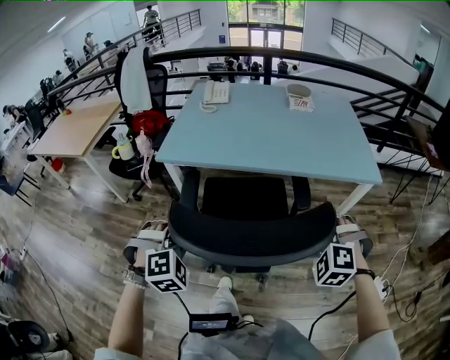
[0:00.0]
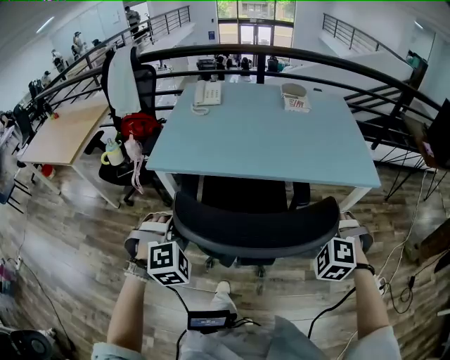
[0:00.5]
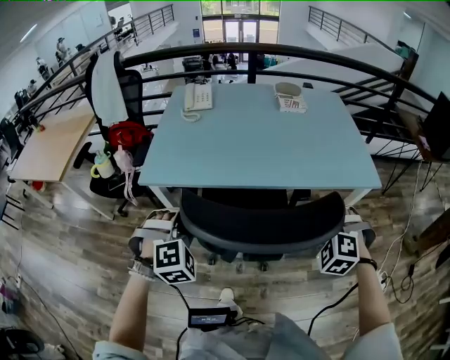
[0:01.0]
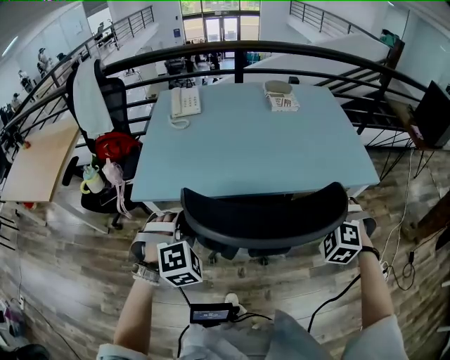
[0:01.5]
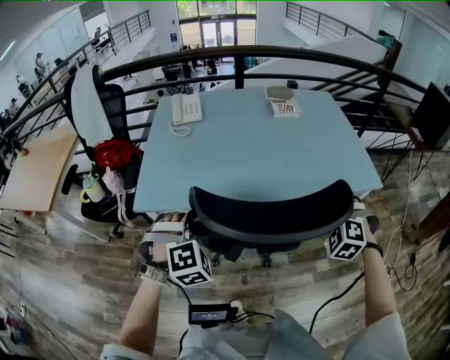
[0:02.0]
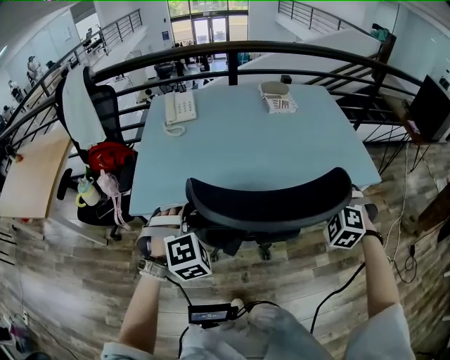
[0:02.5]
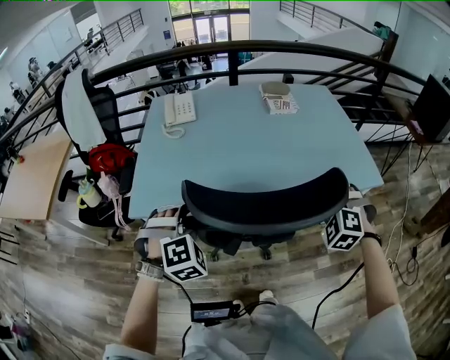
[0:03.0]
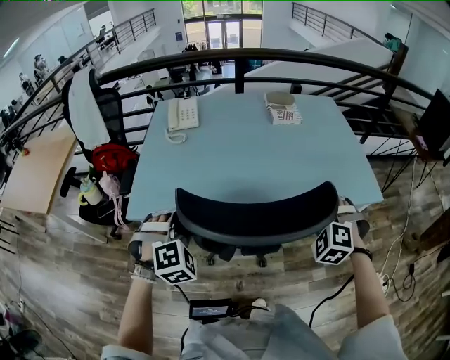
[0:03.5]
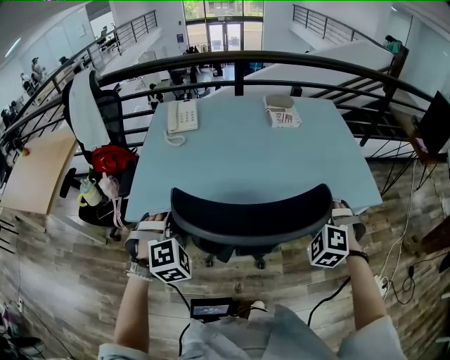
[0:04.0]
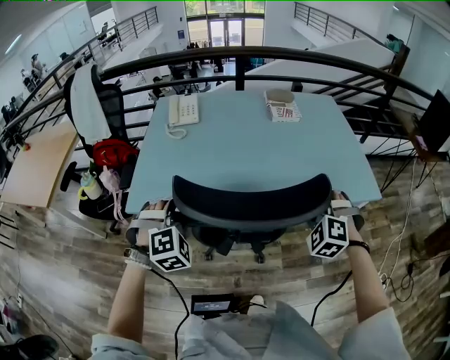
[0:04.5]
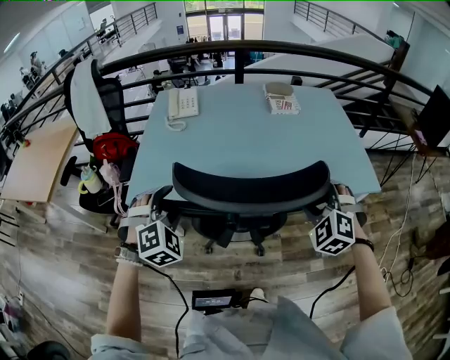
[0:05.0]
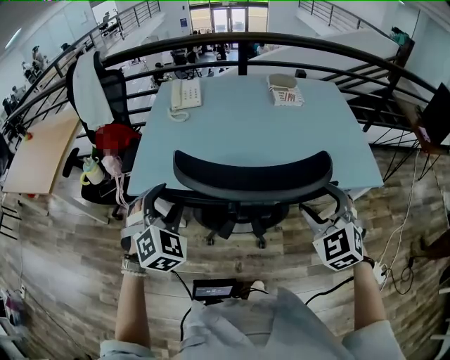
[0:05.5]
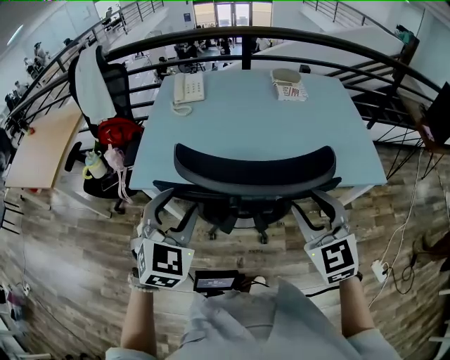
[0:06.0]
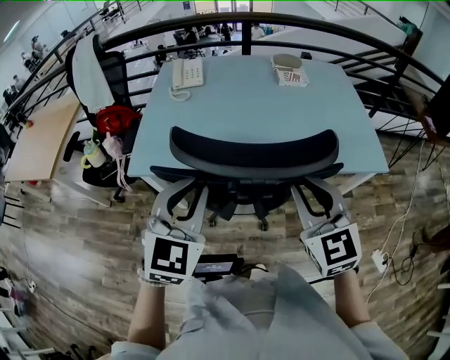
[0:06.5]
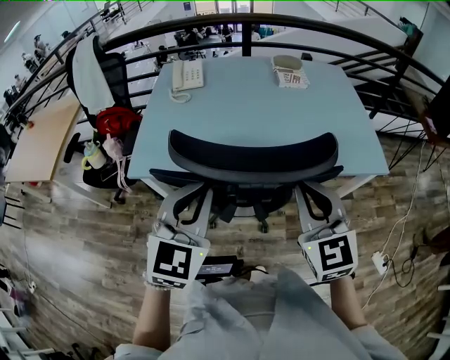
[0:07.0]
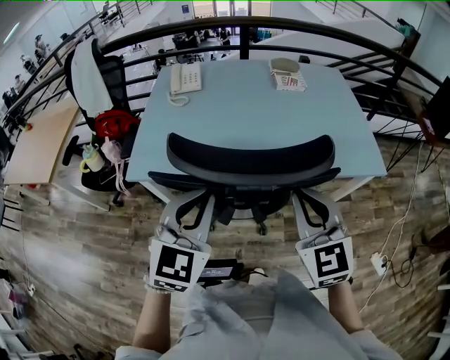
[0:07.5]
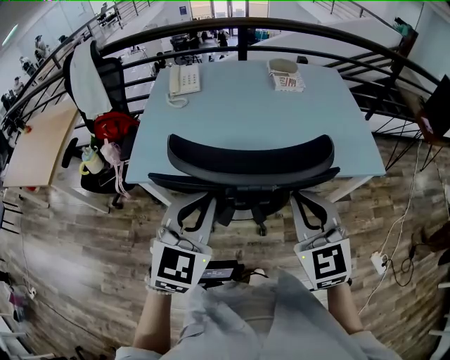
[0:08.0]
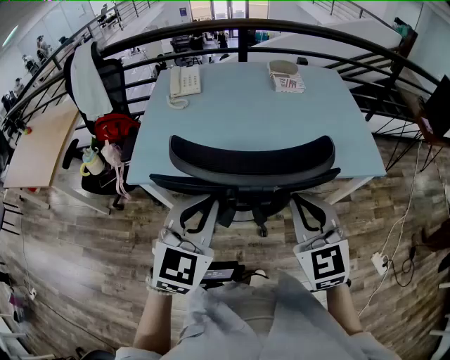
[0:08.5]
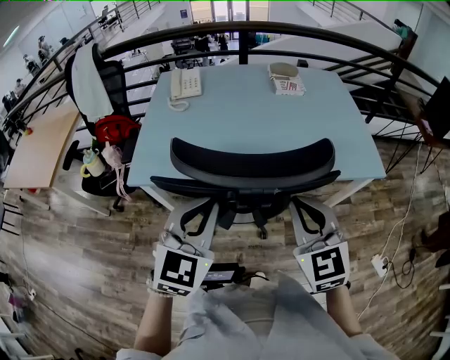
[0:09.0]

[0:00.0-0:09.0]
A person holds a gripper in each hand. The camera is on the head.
0:00.0 to 0:02.0: The grippers both shift forward by about 25 cm.
0:02.0 to 0:04.5: The grippers both shift forward by some 5 cm.
0:04.5 to 0:07.0: The left gripper travels upward, backward and to the right by roughly 15 cm, twists roughly 50 degrees counterclockwise, seen from behind, and closes up. Meanwhile the right gripper goes roughly 15 cm upward, backward and to the left, rotates around the line of its fingers by some 50 degrees, clockwise from behind, and closes.
0:07.0 to 0:09.0: The grippers make only small movements.

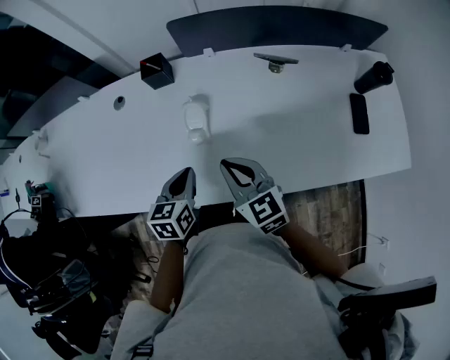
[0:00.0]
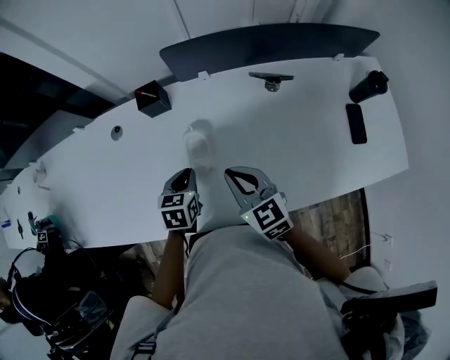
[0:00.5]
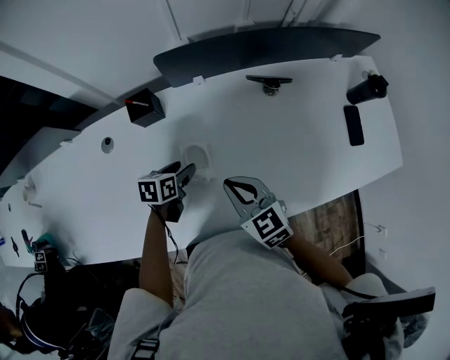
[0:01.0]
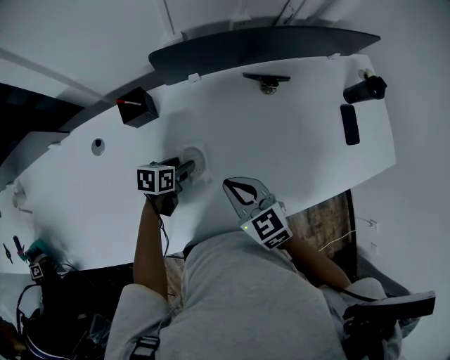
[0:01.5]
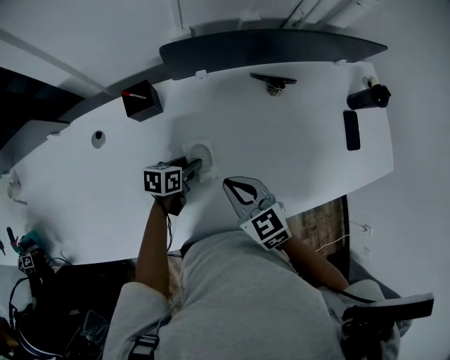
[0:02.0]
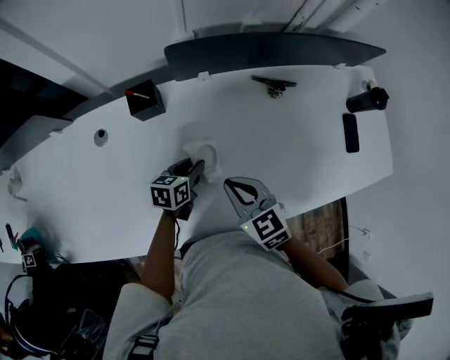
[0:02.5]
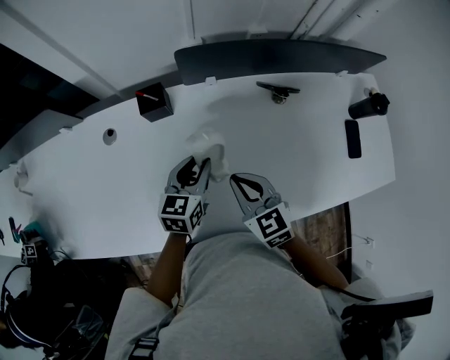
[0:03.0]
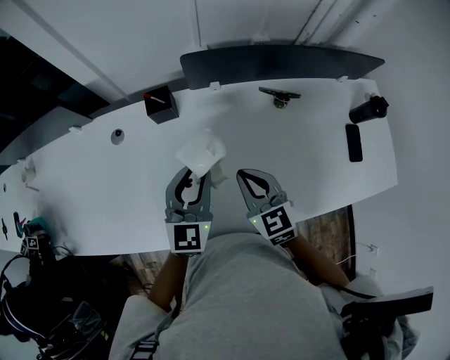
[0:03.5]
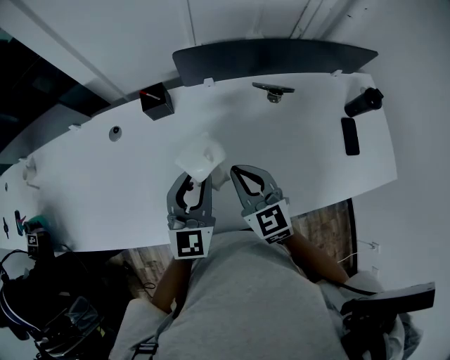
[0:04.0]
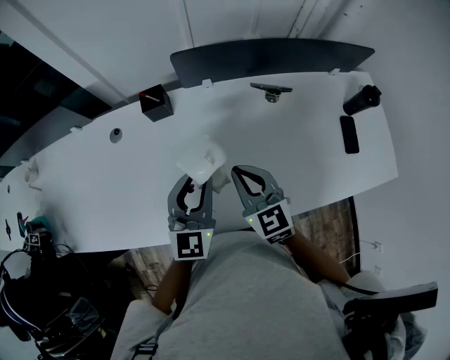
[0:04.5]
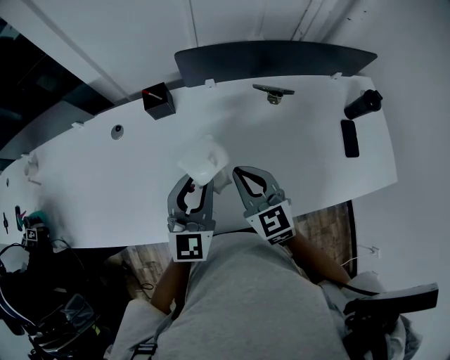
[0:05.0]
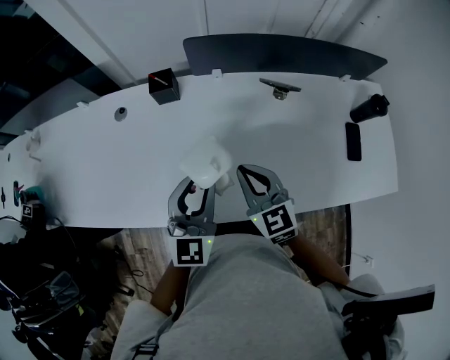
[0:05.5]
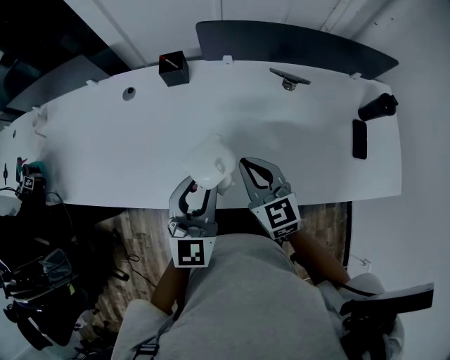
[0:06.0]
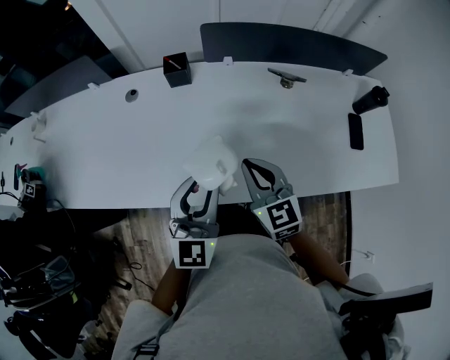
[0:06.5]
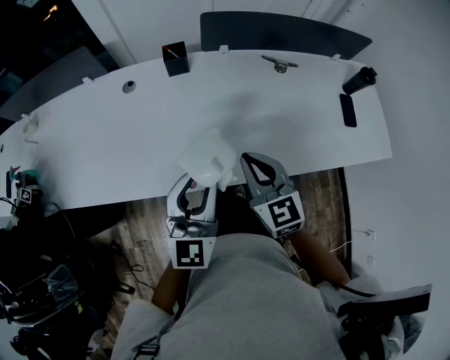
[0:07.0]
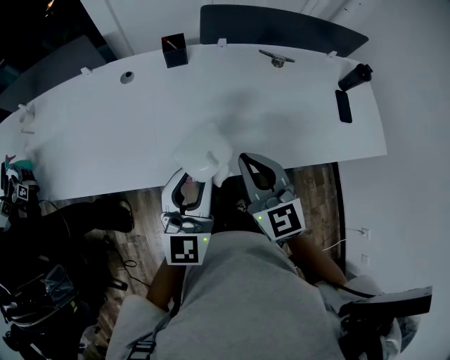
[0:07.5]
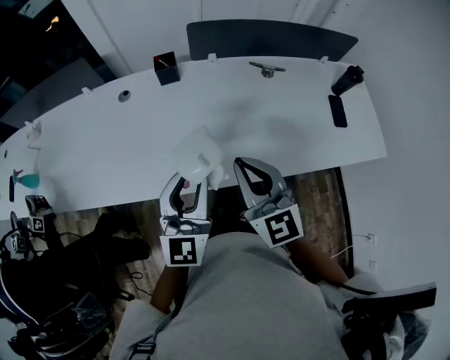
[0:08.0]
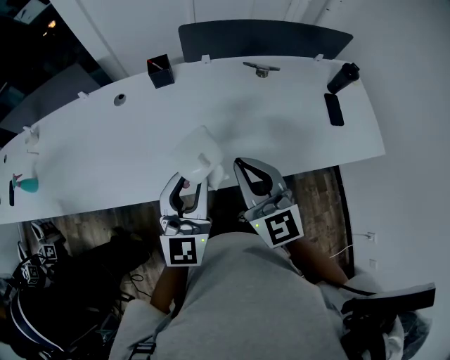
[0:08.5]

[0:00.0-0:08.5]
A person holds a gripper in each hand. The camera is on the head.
0:00.0 to 0:02.0: The right gripper changes place by some 10 cm, while the left gripper moves about 20 cm, swivels approximately 40 degrees, and opens.
0:02.0 to 0:04.0: The left gripper goes some 25 cm upward, and tips its fingers upward by some 40 degrees; the right gripper goes approximately 5 cm upward.
0:04.0 to 0:06.5: Both grippers move backward, approximately 10 cm.
0:06.5 to 0:08.5: The right gripper shifts roughly 15 cm upward and backward. Meanwhile the left gripper is displaced backward by about 5 cm.

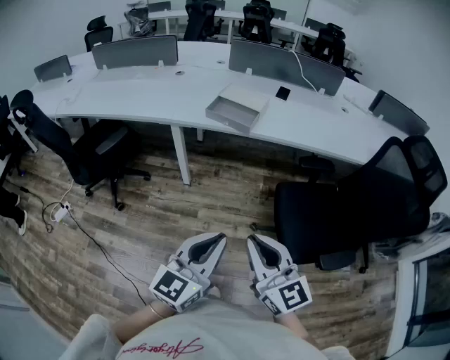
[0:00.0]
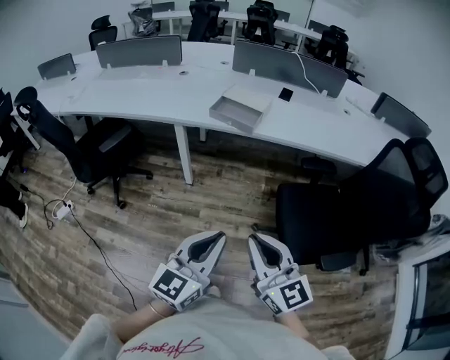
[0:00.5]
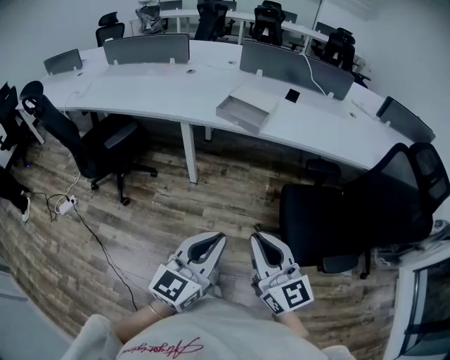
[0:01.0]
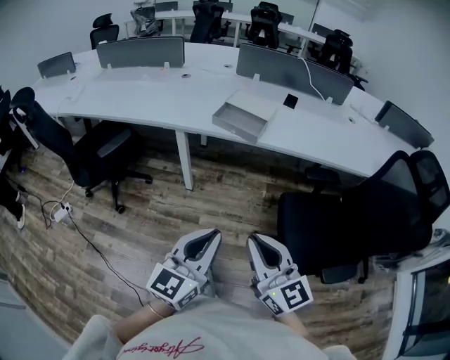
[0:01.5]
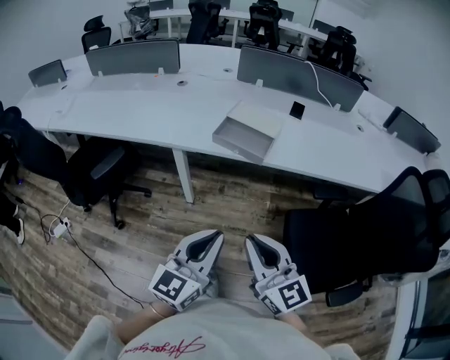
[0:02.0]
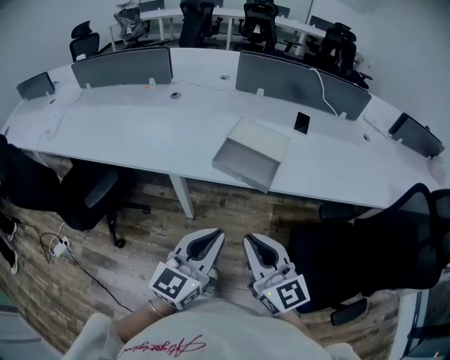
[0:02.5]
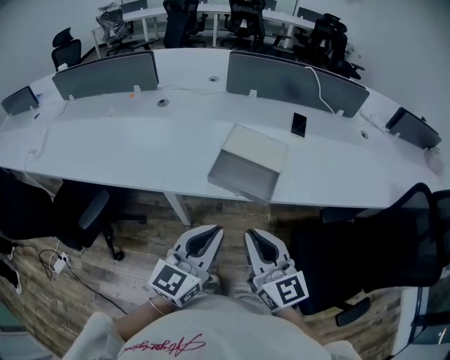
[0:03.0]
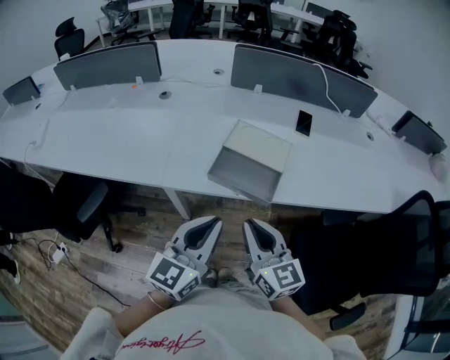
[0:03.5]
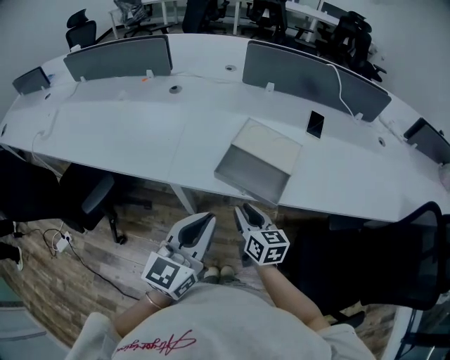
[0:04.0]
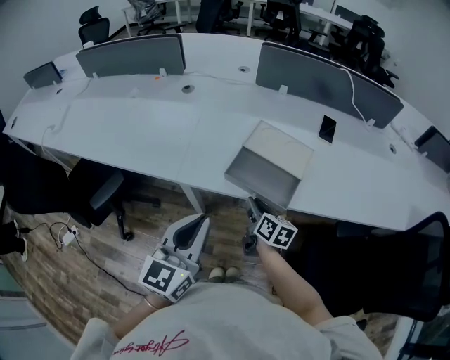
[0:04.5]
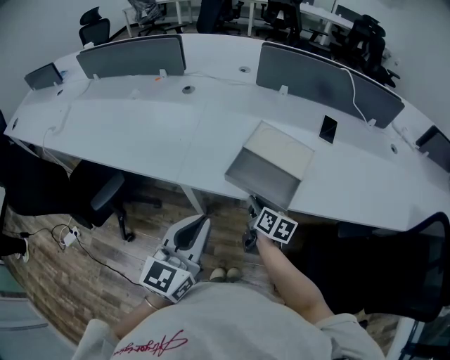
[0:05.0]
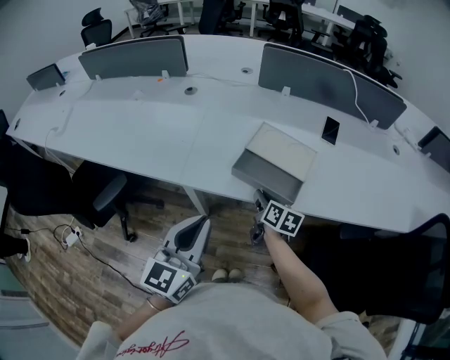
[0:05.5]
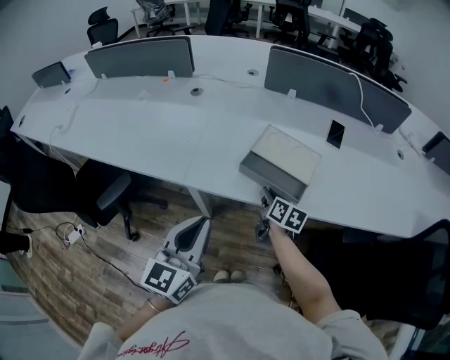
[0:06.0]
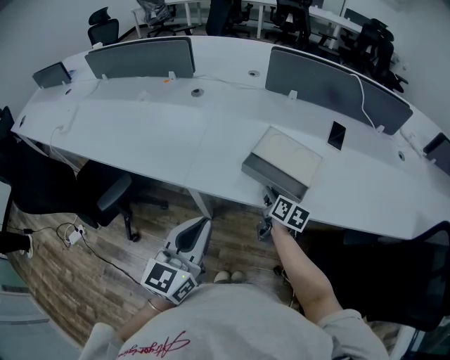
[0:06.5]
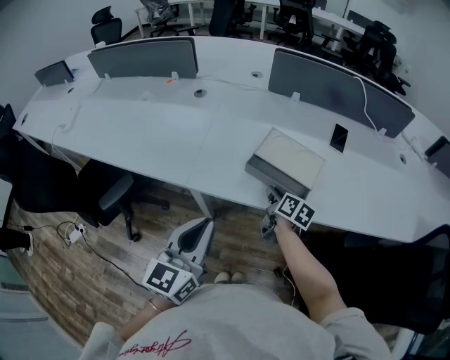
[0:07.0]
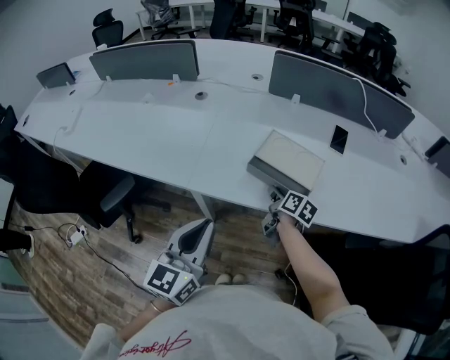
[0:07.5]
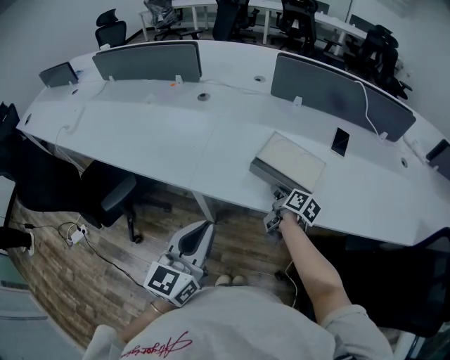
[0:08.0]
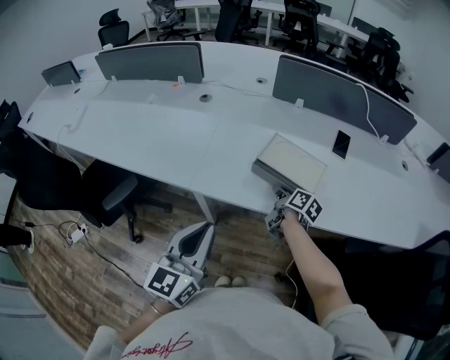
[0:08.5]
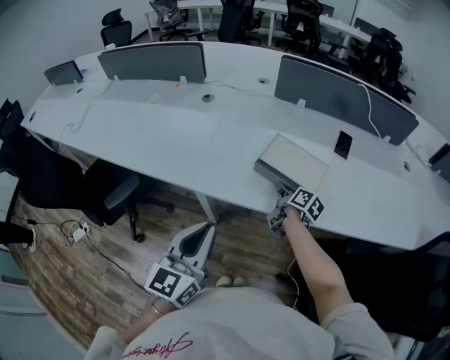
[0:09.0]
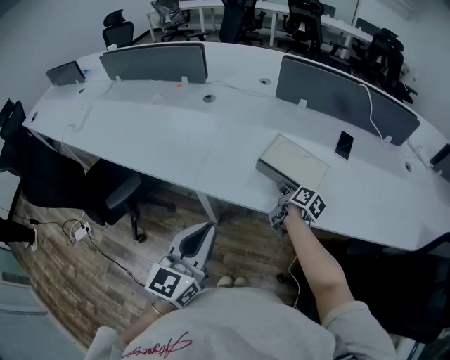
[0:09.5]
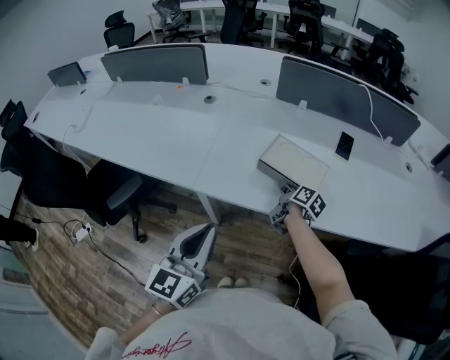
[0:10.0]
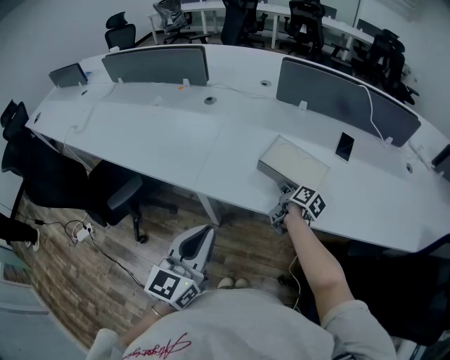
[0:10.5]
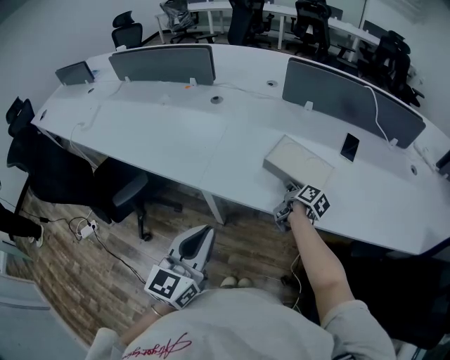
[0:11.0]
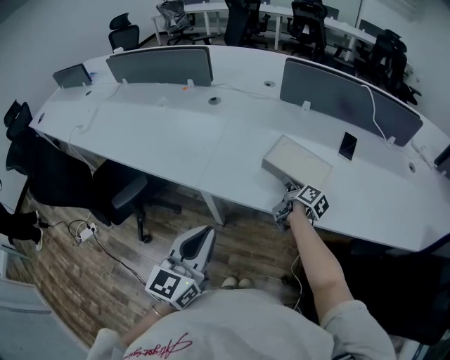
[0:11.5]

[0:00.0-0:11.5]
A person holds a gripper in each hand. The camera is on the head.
0:00.0 to 0:02.0: Both grippers travel together forward, approximately 15 cm.
0:02.0 to 0:04.0: The right gripper shifts approximately 35 cm forward and downward, and swivels approximately 30 degrees, while the left gripper travels forward by some 25 cm.
0:04.0 to 0:06.0: The right gripper moves forward, some 10 cm, and changes its angle by some 20 degrees.
0:06.0 to 0:07.5: There are only small adjustments of the grippers.
0:07.5 to 0:11.5: There are only small adjustments of the grippers.
